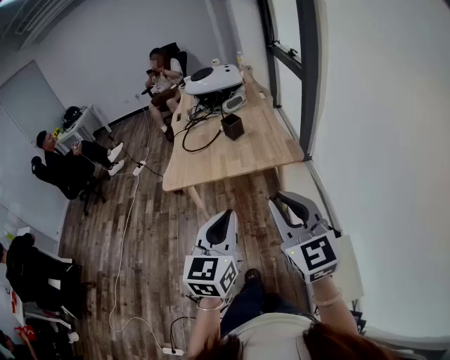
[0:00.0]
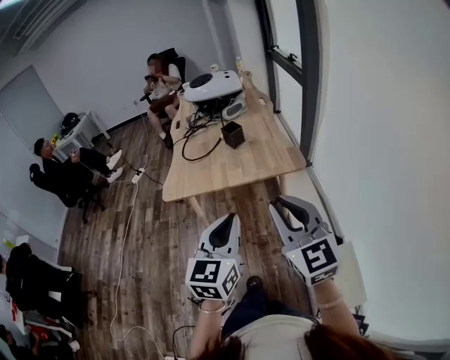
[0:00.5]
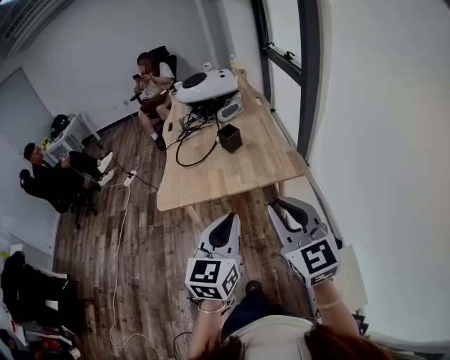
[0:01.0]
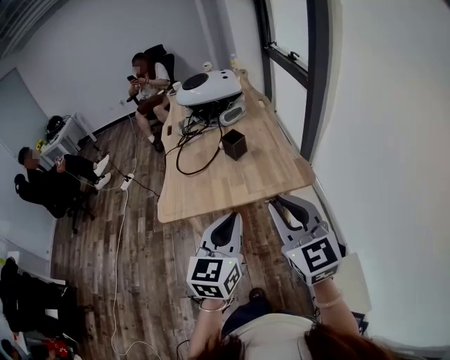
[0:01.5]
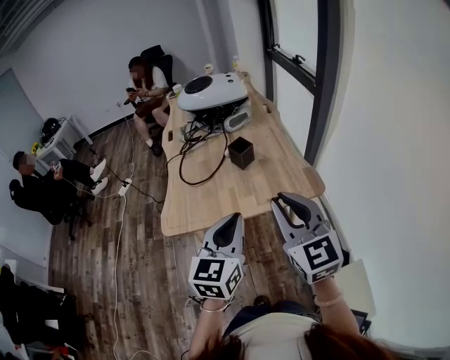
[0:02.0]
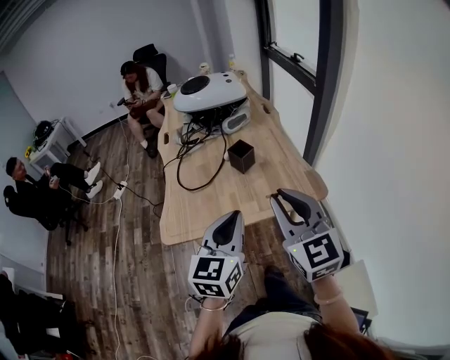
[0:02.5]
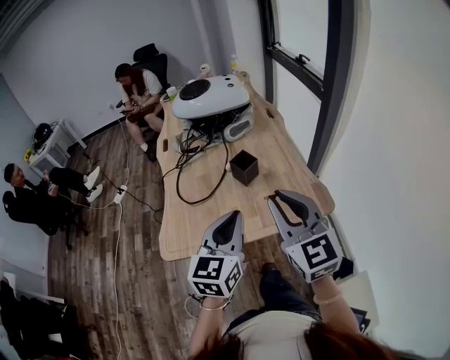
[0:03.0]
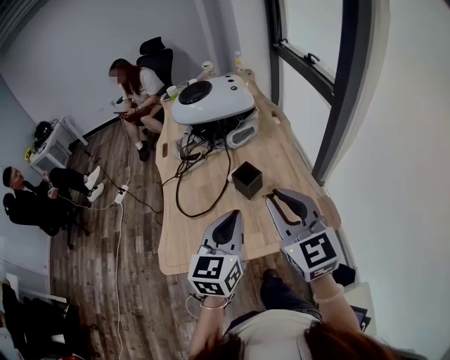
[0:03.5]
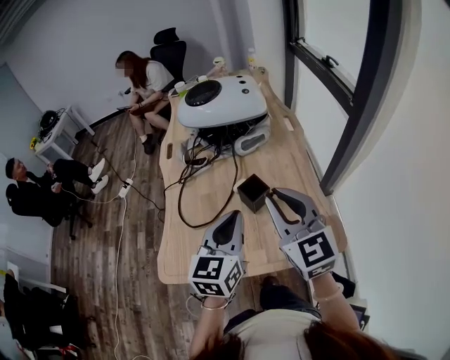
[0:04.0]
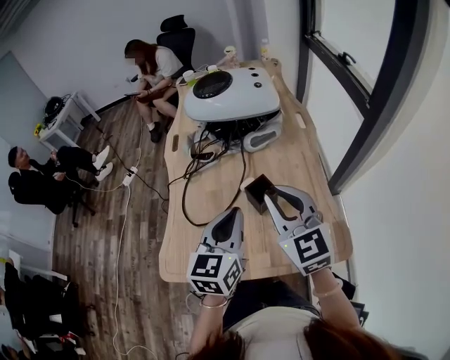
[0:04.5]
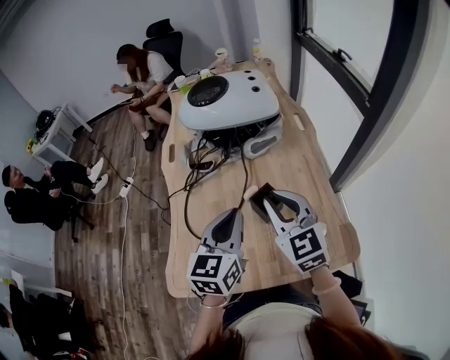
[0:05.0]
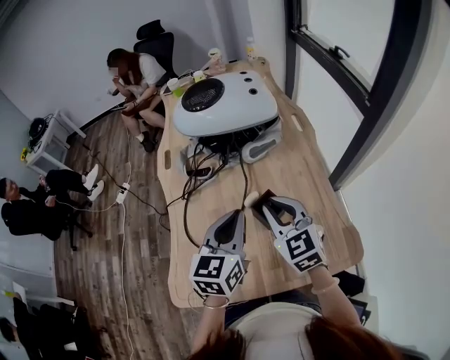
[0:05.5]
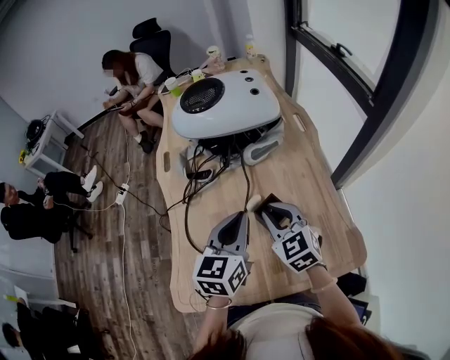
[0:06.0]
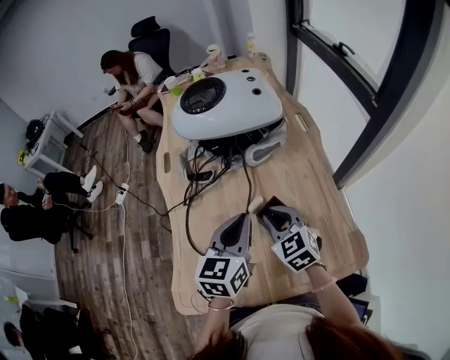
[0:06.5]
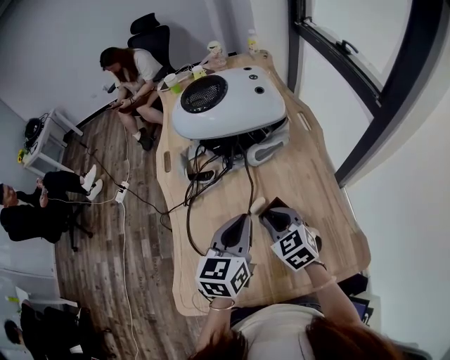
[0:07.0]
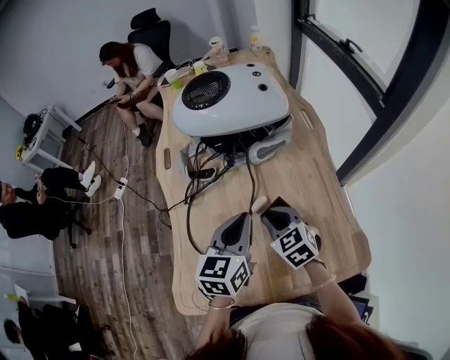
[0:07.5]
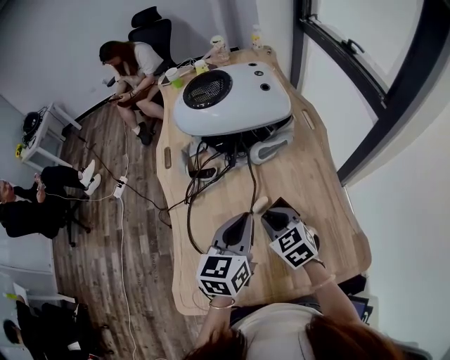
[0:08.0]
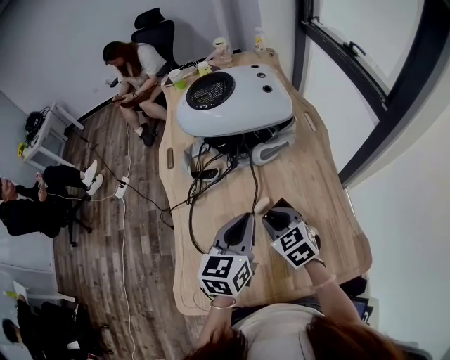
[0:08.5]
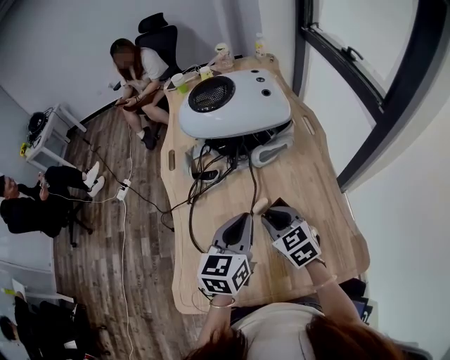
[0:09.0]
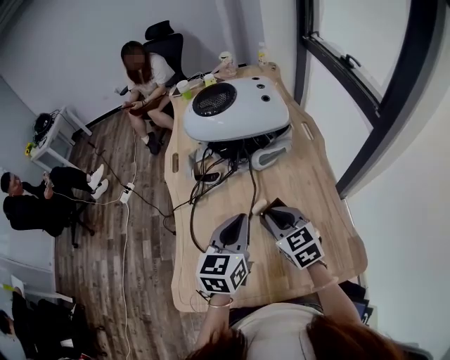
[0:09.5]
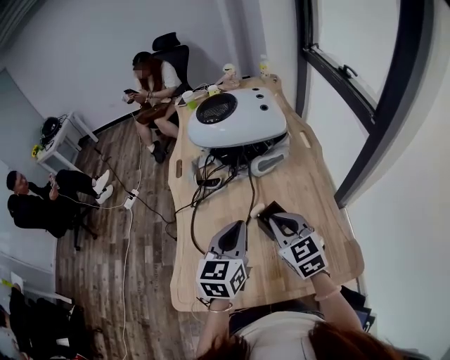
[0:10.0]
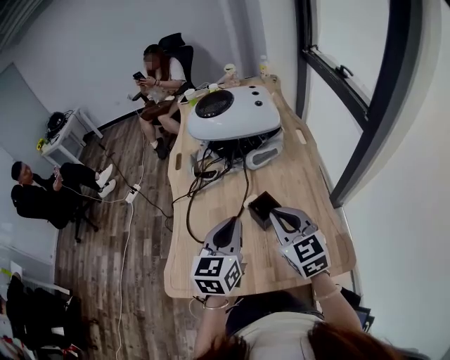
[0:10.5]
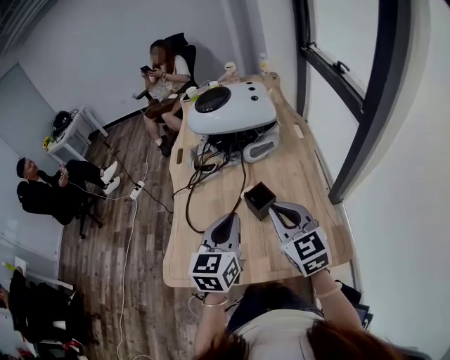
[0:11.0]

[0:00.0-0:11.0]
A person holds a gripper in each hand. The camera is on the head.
0:00.0 to 0:02.0: Both grippers move forward, some 25 cm.
0:02.0 to 0:03.5: The two grippers go approximately 20 cm forward.
0:03.5 to 0:05.5: The right gripper heads forward and downward, covering some 25 cm. Meanwhile the left gripper moves forward, roughly 20 cm.
0:05.5 to 0:07.5: The left gripper changes place by approximately 5 cm. Meanwhile the right gripper travels downward by approximately 10 cm.
0:07.5 to 0:09.0: There are only small adjustments of the grippers.
0:09.0 to 0:11.0: The right gripper is displaced upward, backward and to the right by some 20 cm, and swivels approximately 20 degrees. The left gripper heads backward and upward, covering about 15 cm.

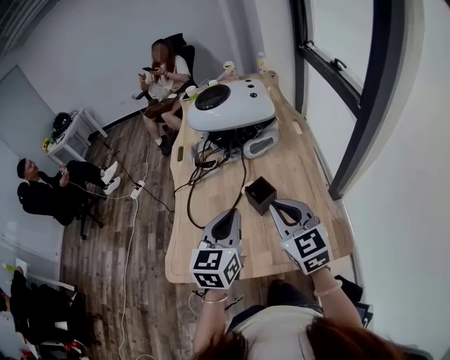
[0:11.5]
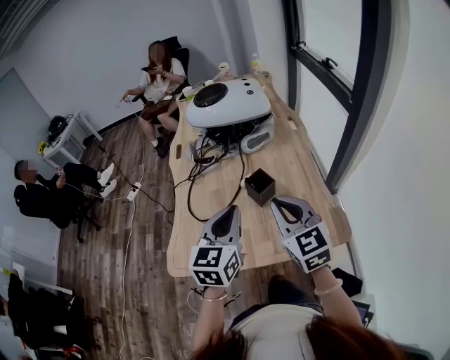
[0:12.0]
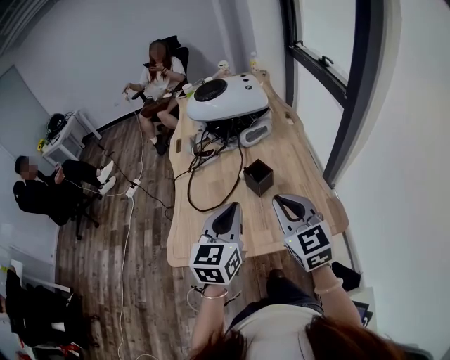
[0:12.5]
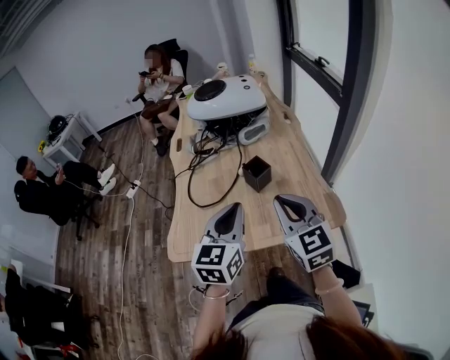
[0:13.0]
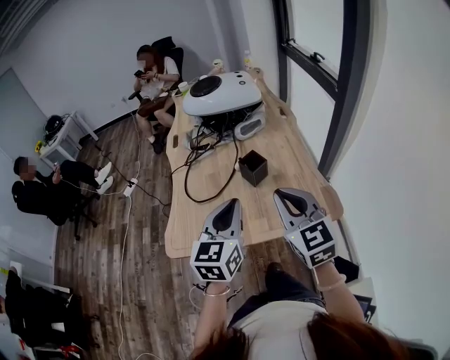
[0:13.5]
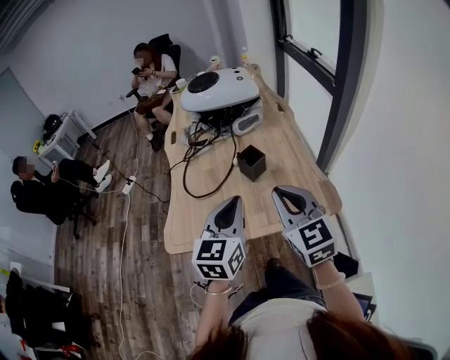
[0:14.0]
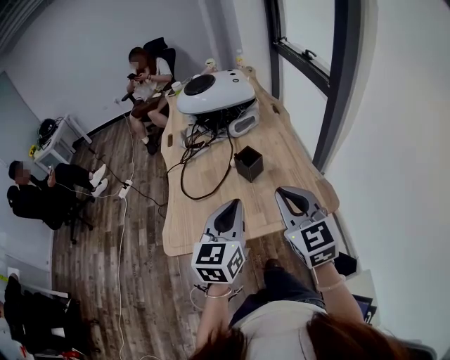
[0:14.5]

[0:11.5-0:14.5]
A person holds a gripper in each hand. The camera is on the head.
0:11.5 to 0:13.0: The grippers both shift backward by approximately 10 cm.
0:13.0 to 0:14.5: The grippers move only a little.

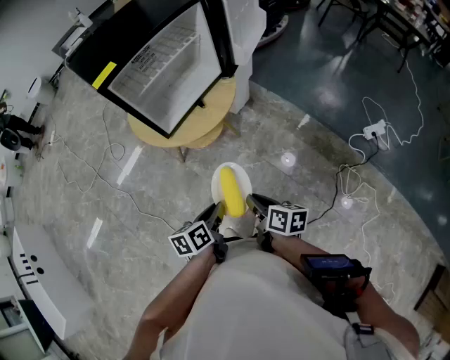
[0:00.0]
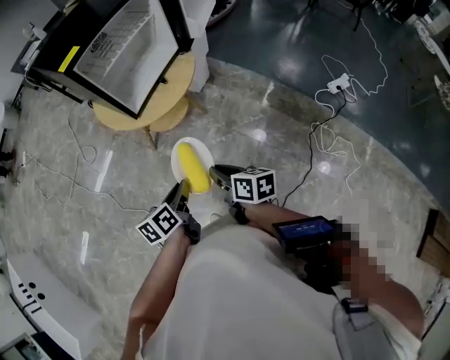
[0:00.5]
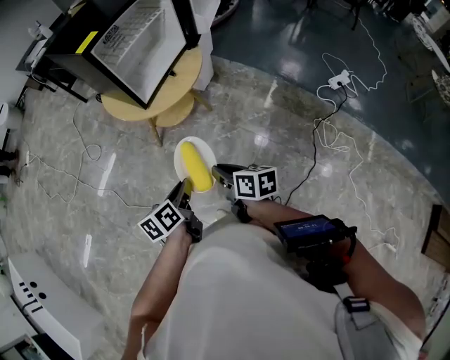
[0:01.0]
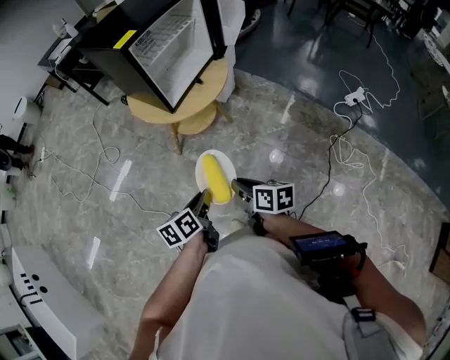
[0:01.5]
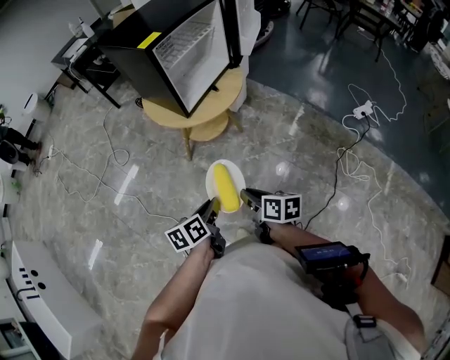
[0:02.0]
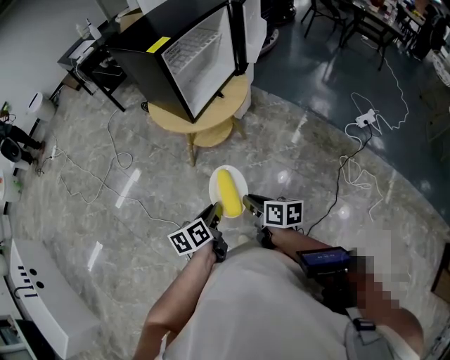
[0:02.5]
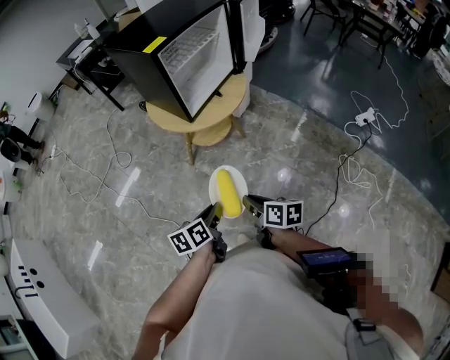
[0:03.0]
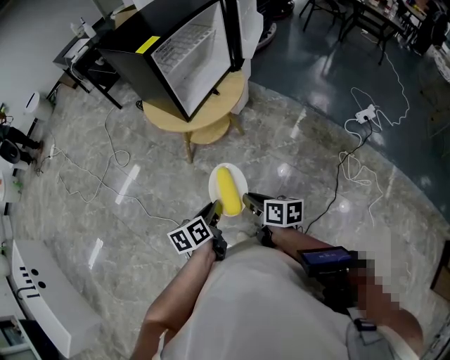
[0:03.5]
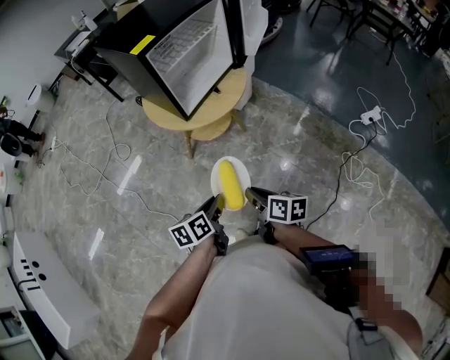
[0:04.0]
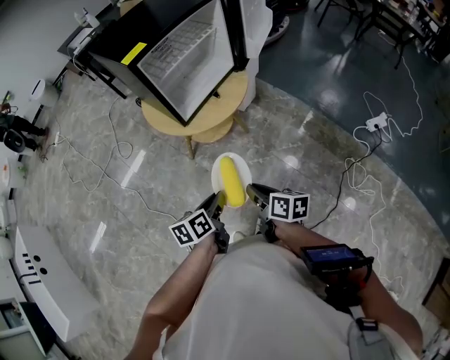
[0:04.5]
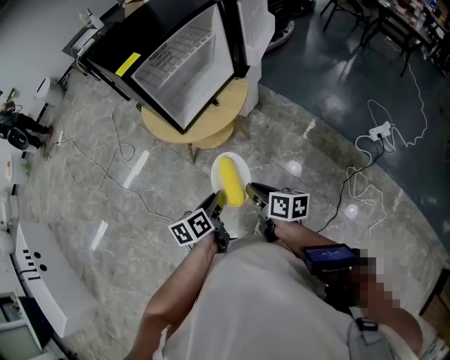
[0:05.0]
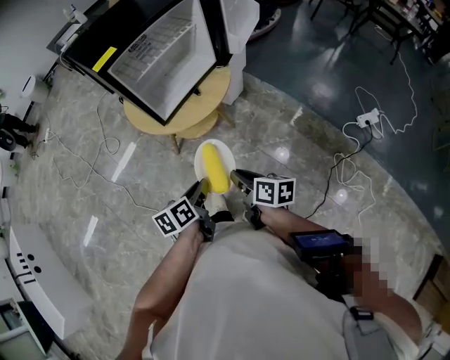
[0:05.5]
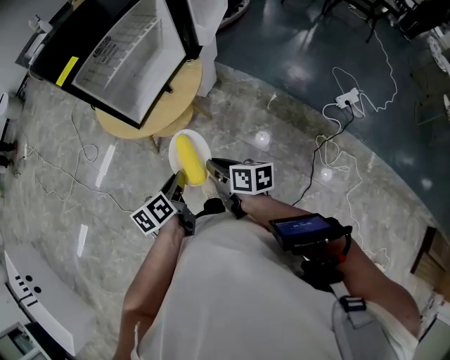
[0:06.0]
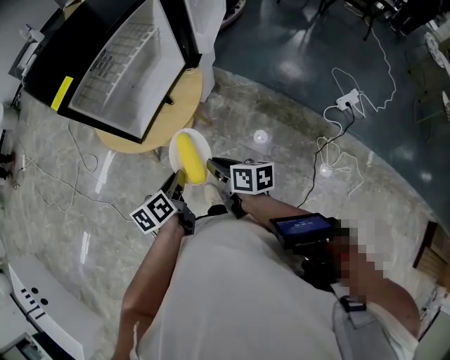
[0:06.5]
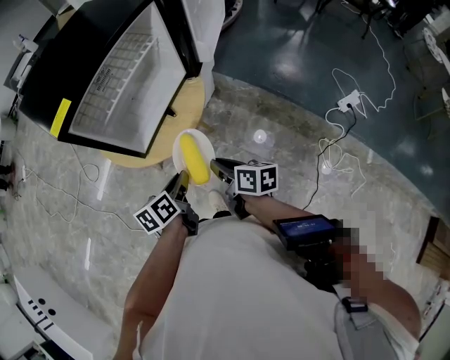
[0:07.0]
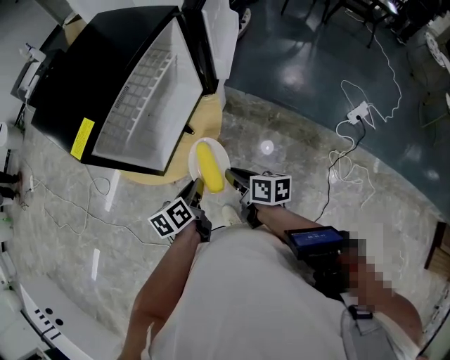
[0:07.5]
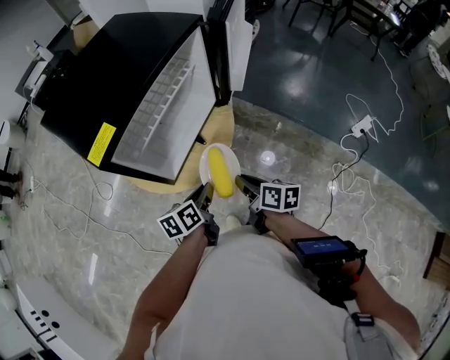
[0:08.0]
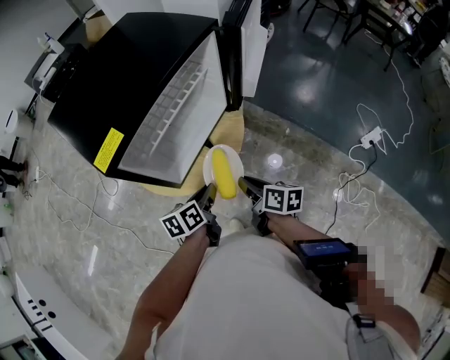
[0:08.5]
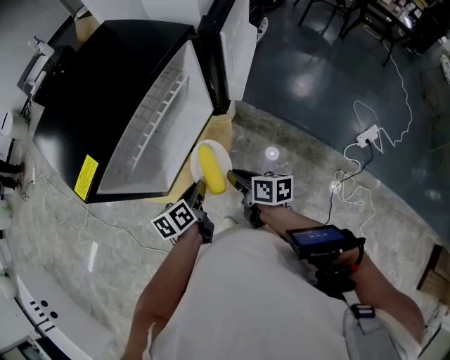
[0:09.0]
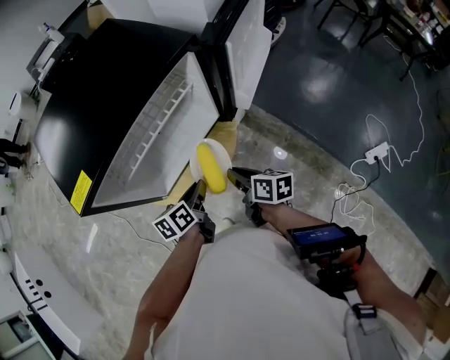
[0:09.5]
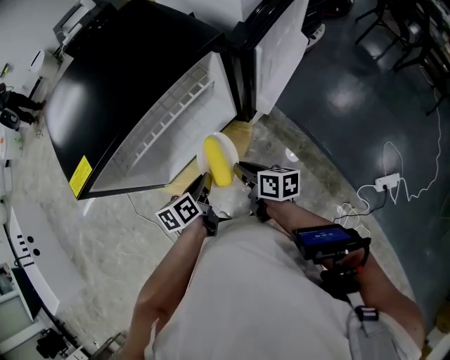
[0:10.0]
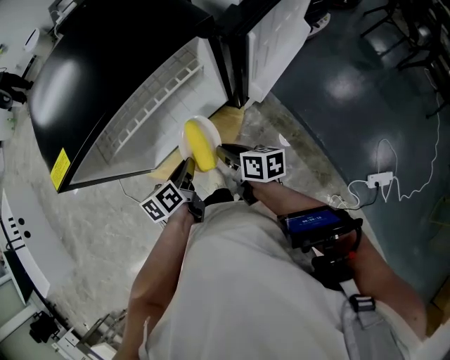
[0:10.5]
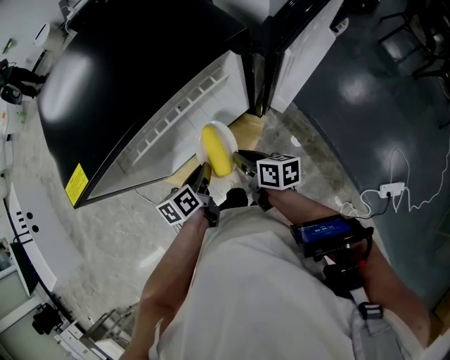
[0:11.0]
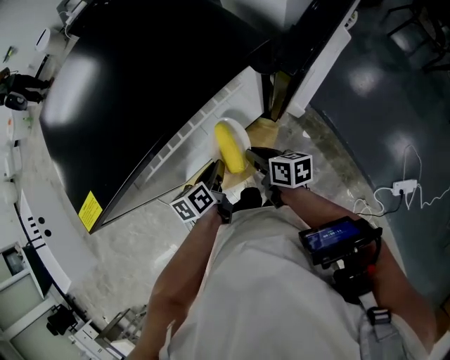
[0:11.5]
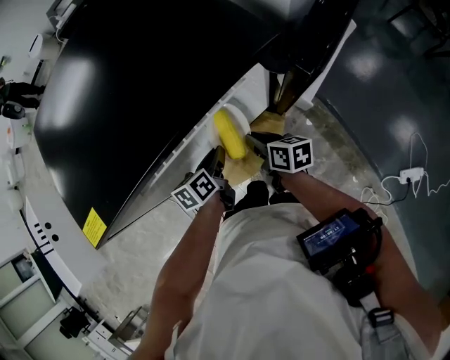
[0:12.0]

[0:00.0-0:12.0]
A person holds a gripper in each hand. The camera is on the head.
0:00.0 to 0:02.0: Both grippers move to the left and backward, approximately 20 cm.
0:02.0 to 0:04.0: The left gripper ends up roughly 5 cm from where it was, while the right gripper moves about 5 cm.
0:04.0 to 0:06.0: The two grippers go some 15 cm forward and to the right.
0:06.0 to 0:08.0: Both grippers travel together forward, about 20 cm.
0:08.0 to 0:10.0: The right gripper moves forward, approximately 15 cm, and rotates approximately 30 degrees. Meanwhile the left gripper moves forward and to the right, some 15 cm, and rotates about 20 degrees.
0:10.0 to 0:12.0: The grippers both shift forward and downward by some 15 cm.

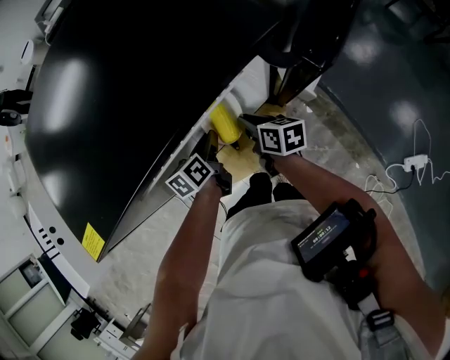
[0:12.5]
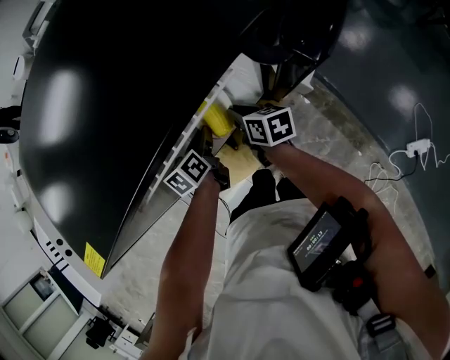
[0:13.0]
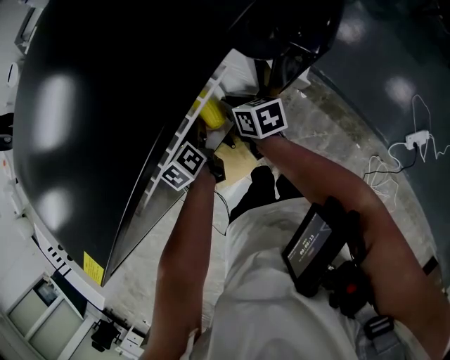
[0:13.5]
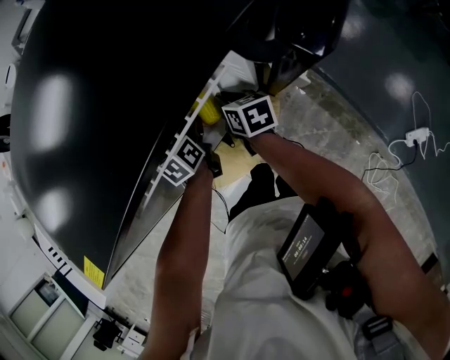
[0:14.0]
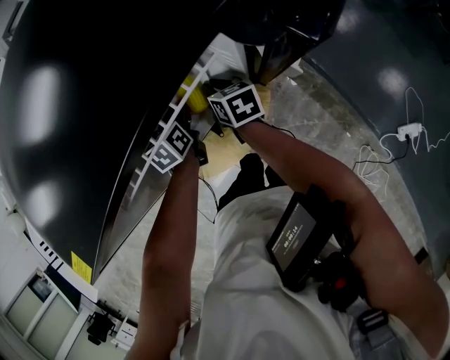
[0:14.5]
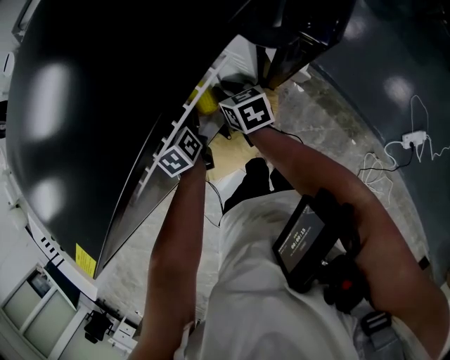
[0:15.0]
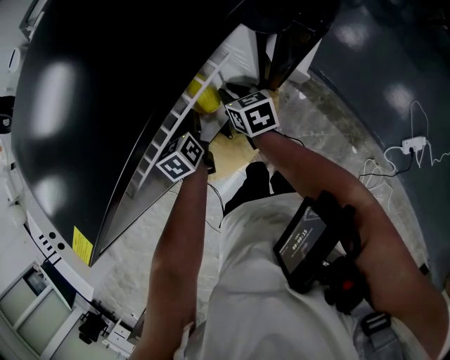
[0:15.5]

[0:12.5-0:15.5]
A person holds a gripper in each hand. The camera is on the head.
0:12.5 to 0:14.0: The grippers both shift forward by some 5 cm.
0:14.0 to 0:15.5: There are only small adjustments of the grippers.
